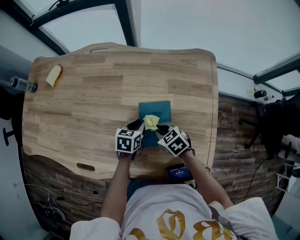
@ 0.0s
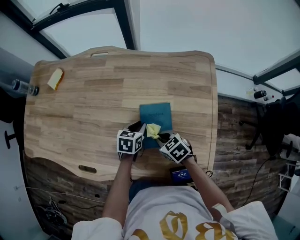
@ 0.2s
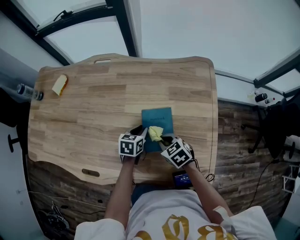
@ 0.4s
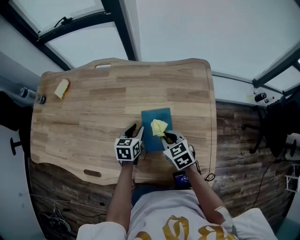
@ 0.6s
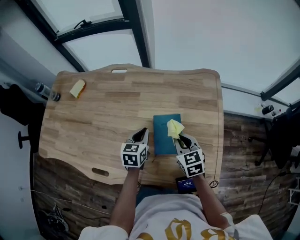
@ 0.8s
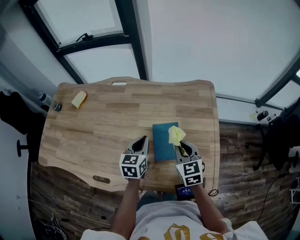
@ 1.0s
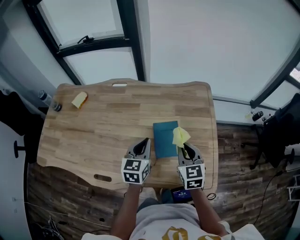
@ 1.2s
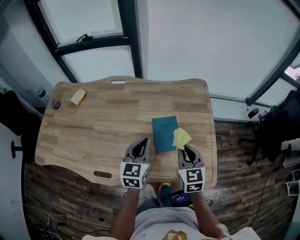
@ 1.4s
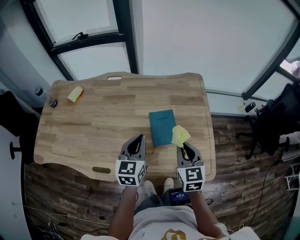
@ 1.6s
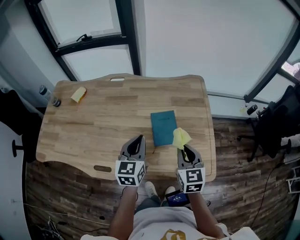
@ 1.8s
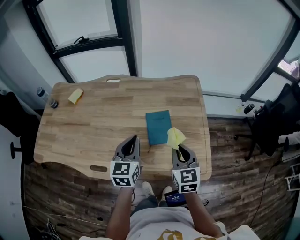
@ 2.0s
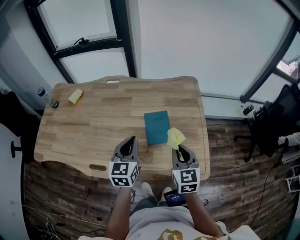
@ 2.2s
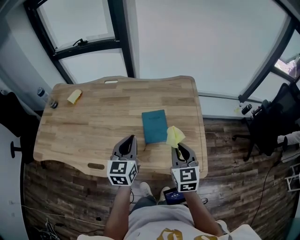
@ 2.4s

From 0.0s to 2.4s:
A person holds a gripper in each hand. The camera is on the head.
From 0.0s to 1.2s: The two grippers go approximately 20 cm upward. The left gripper swivels approximately 30 degrees. The right gripper turns by approximately 50 degrees.
From 1.2s to 2.4s: The right gripper is displaced backward by approximately 10 cm, while the left gripper heads backward and upward, covering roughly 10 cm.

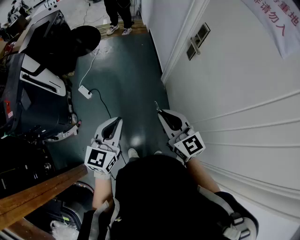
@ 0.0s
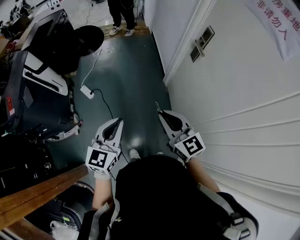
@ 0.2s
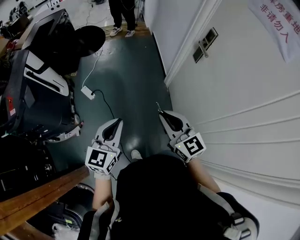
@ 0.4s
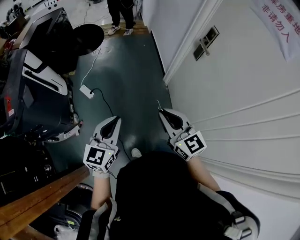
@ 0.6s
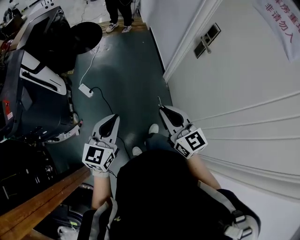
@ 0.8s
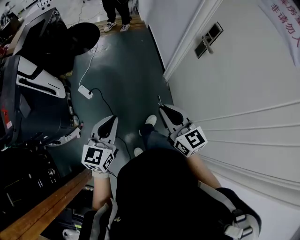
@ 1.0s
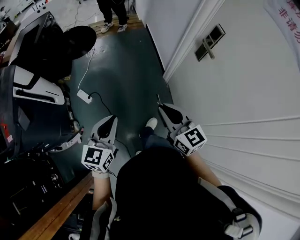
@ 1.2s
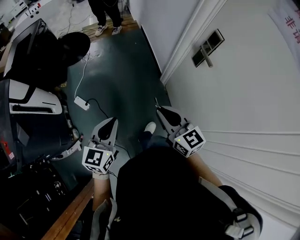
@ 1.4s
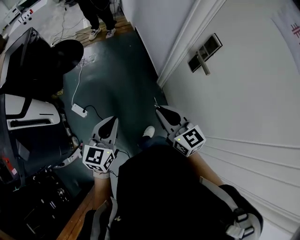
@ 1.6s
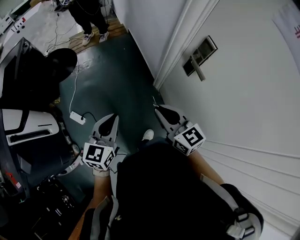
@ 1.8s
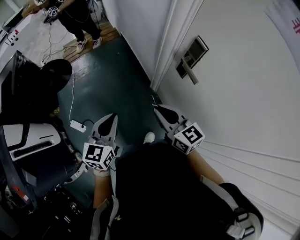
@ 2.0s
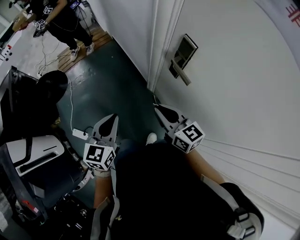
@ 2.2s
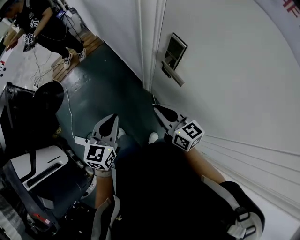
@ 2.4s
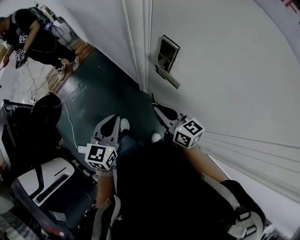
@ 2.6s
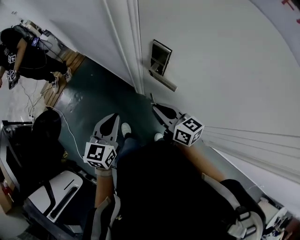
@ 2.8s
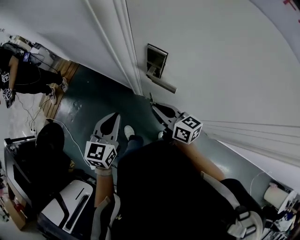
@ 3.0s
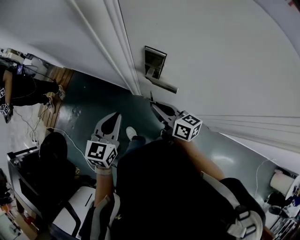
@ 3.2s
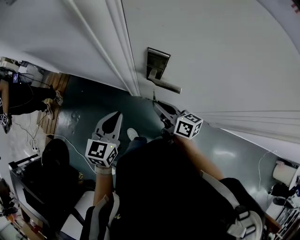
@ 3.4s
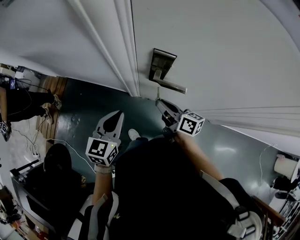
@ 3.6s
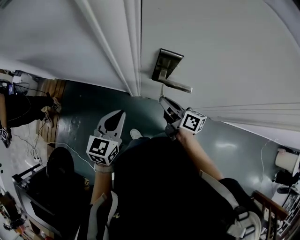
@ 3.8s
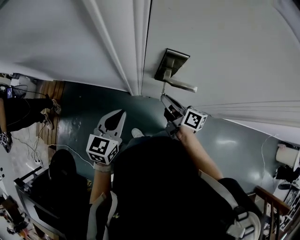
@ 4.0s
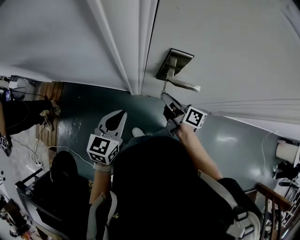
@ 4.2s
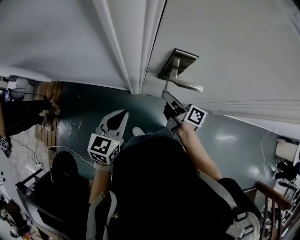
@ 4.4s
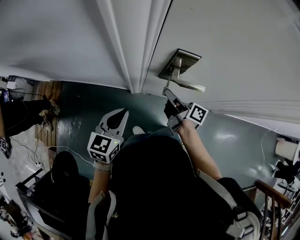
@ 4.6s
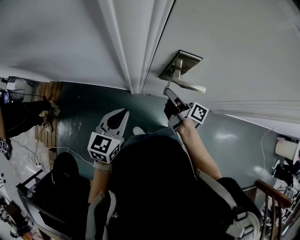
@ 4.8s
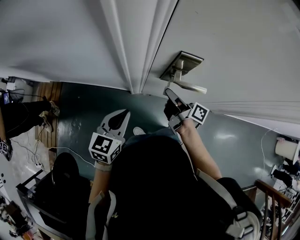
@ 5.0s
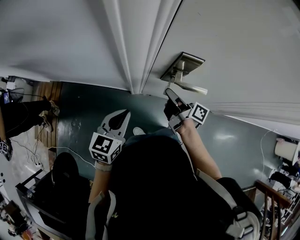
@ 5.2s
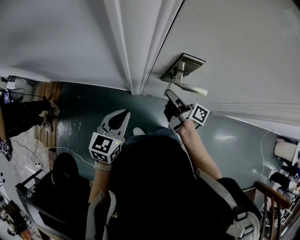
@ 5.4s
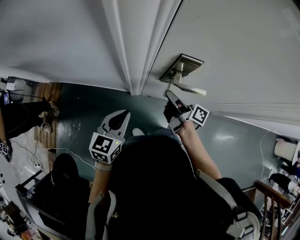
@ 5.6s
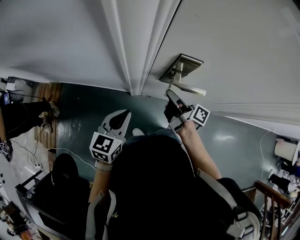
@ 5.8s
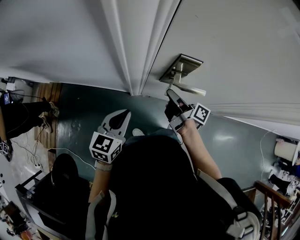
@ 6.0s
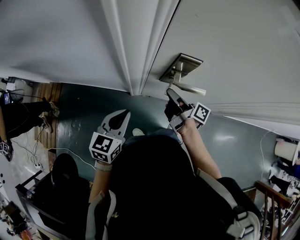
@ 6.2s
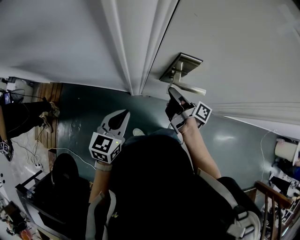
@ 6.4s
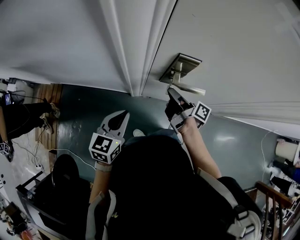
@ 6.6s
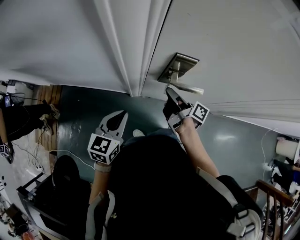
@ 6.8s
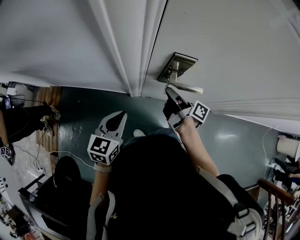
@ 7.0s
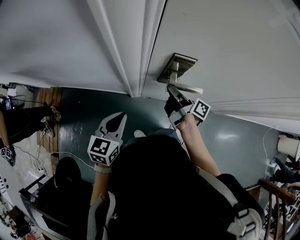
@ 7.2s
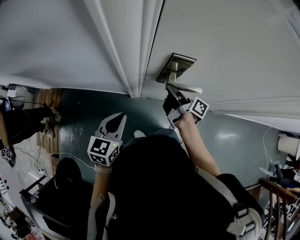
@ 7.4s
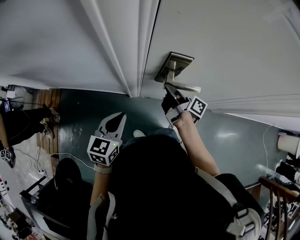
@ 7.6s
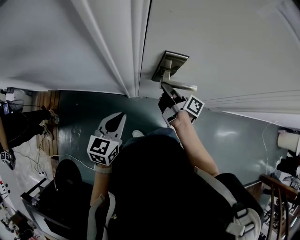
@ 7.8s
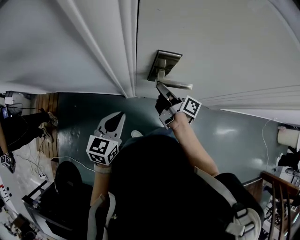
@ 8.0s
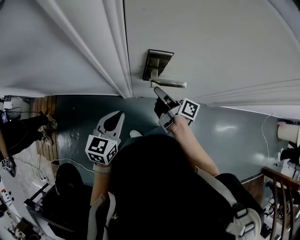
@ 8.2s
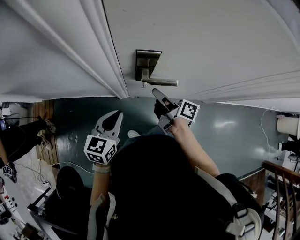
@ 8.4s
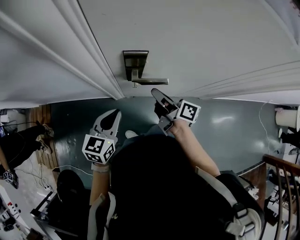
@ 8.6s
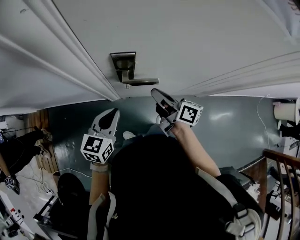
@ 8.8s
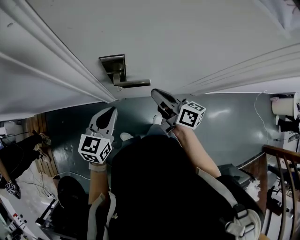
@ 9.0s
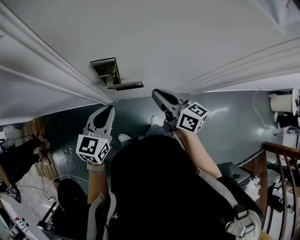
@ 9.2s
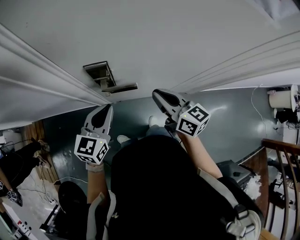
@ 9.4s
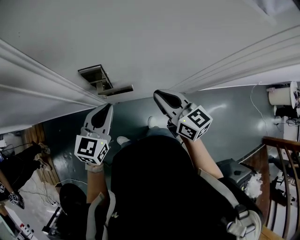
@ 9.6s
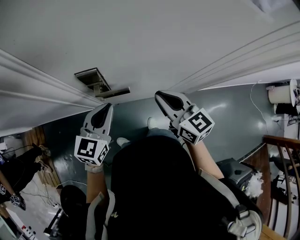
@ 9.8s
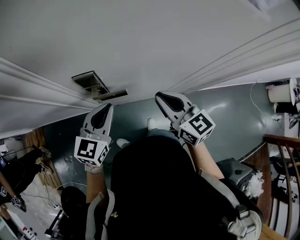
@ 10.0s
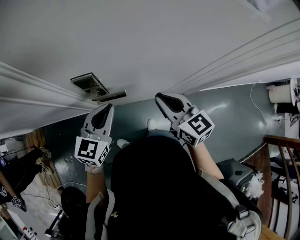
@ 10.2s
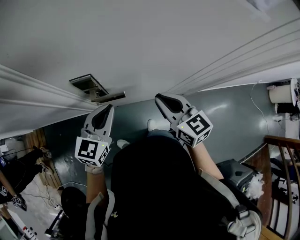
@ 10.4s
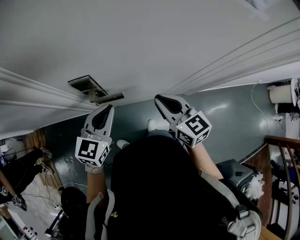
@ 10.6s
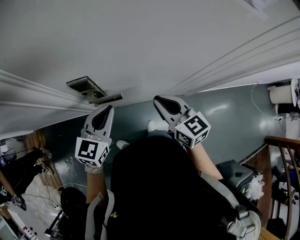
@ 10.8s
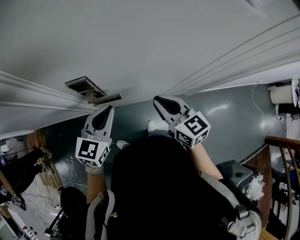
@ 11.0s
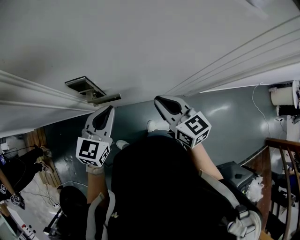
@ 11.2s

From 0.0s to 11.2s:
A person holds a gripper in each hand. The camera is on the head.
From 0.0s to 1.6s: Both grippers move forward, approximately 25 cm.
From 1.6s to 3.2s: The right gripper shifts by roughly 25 cm, and swivels some 60 degrees. The left gripper moves approximately 35 cm, and rotates approximately 50 degrees.
From 3.2s to 4.8s: The right gripper heads forward and downward, covering roughly 10 cm, and rotates approximately 50 degrees. The left gripper moves to the left, forward and downward, roughly 10 cm, and changes its angle by roughly 20 degrees.
From 4.8s to 8.0s: There are only small adjustments of the grippers.
From 8.0s to 9.6s: Both grippers travel together to the right and upward, approximately 20 cm. The right gripper rolls counterclockwise, seen from behind, by roughly 60 degrees.
From 9.6s to 11.2s: The two grippers go some 5 cm to the right.

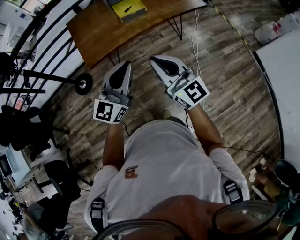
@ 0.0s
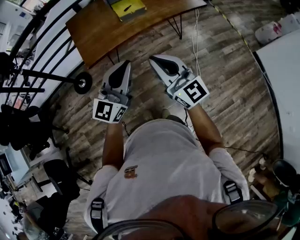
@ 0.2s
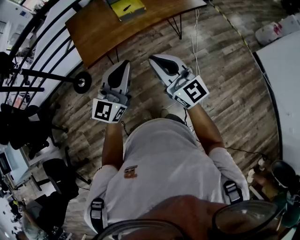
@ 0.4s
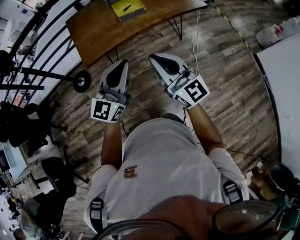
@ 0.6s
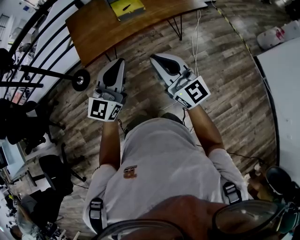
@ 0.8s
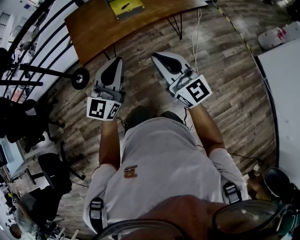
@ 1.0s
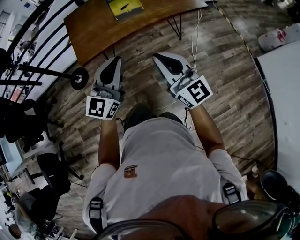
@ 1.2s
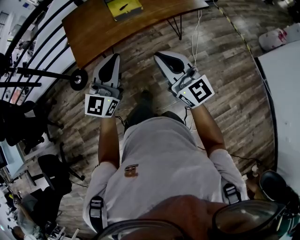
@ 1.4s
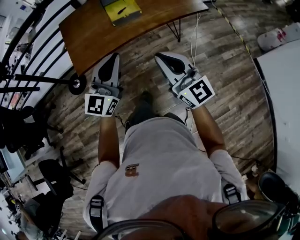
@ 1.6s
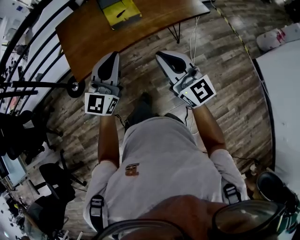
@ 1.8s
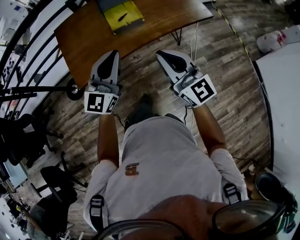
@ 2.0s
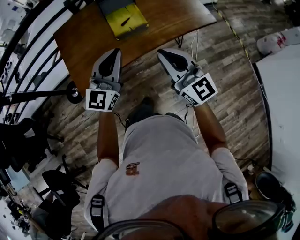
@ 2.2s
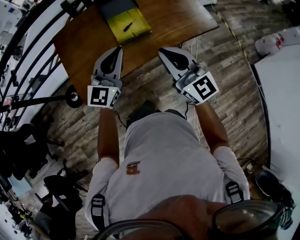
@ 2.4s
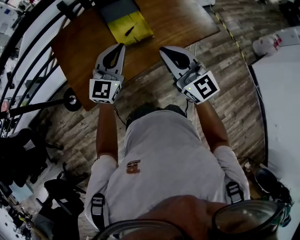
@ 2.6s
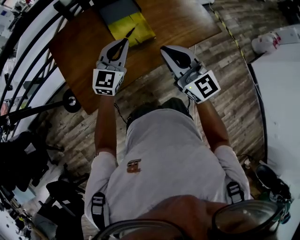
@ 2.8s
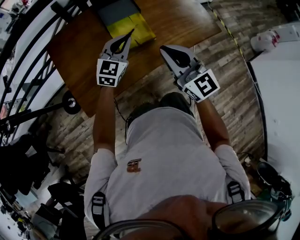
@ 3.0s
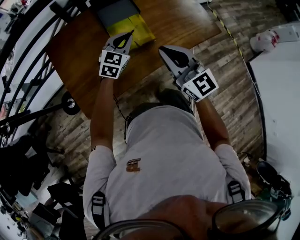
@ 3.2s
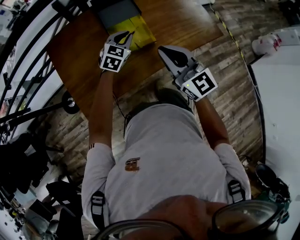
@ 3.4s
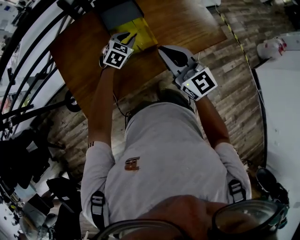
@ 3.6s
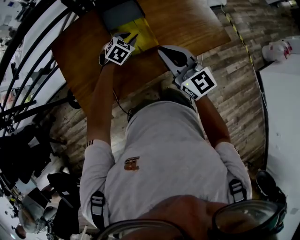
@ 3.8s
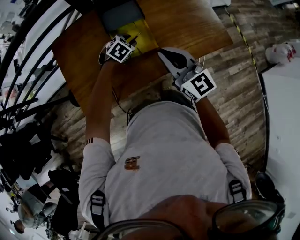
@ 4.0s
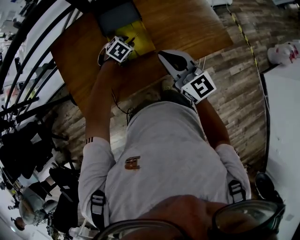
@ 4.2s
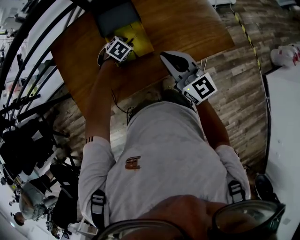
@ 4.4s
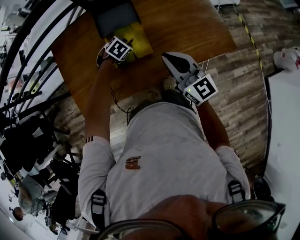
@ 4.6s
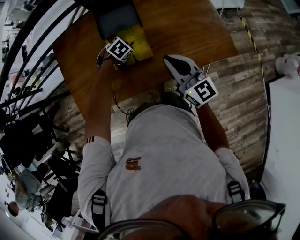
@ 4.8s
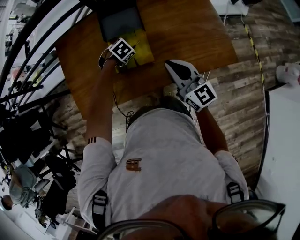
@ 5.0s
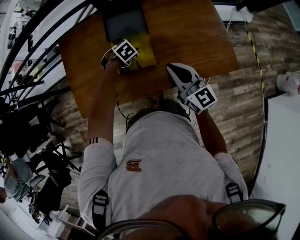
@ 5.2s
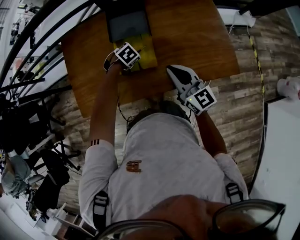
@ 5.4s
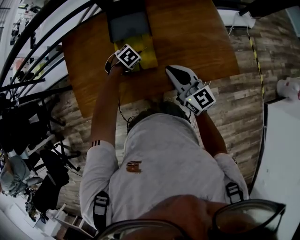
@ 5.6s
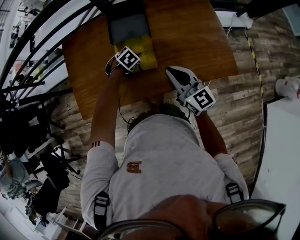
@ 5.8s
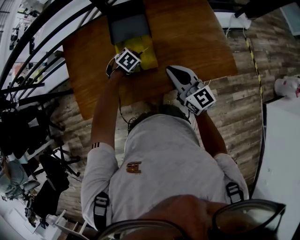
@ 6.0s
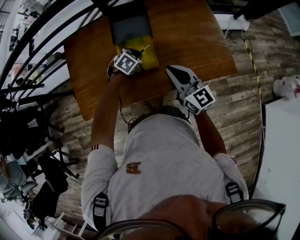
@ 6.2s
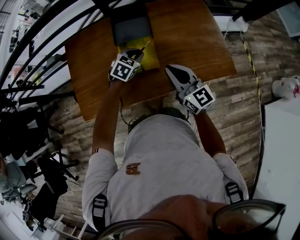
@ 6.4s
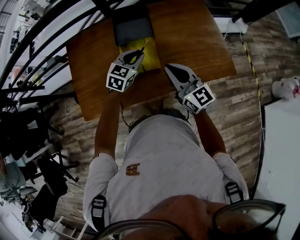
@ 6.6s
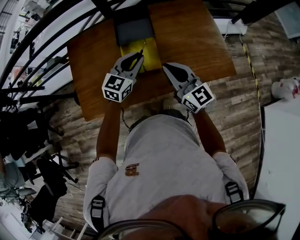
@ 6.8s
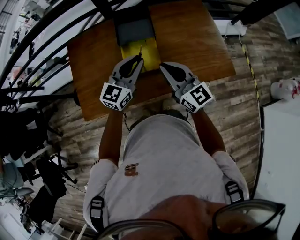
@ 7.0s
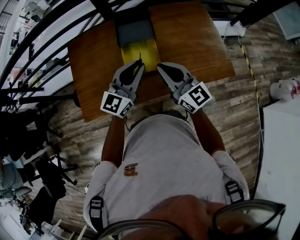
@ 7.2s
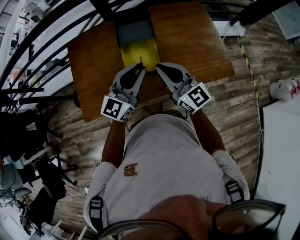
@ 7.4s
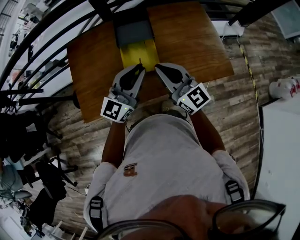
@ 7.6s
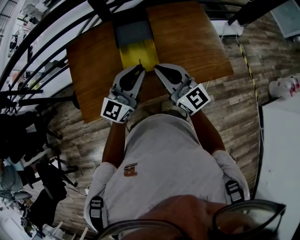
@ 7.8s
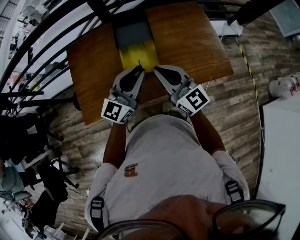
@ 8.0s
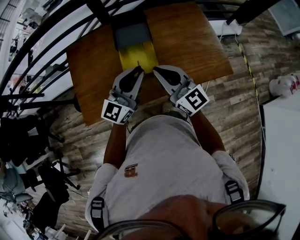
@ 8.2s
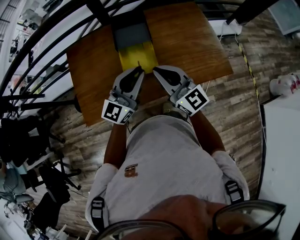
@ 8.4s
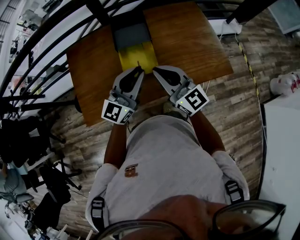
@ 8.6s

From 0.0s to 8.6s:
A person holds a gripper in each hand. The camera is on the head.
From 0.0s to 1.4s: The left gripper travels forward and to the right by roughly 10 cm. Meanwhile the right gripper shifts some 10 cm to the right and forward.
From 1.4s to 2.8s: Both grippers are carried forward, roughly 40 cm.
From 2.8s to 4.4s: The right gripper moves forward, to the right and downward, some 20 cm; the left gripper heads downward and forward, covering roughly 30 cm, points its fingers roughly 60 degrees further downward, and opens its fingers.
From 4.4s to 5.8s: The right gripper changes place by roughly 5 cm.
From 5.8s to 7.2s: The right gripper changes place by about 10 cm, while the left gripper heads upward, covering about 30 cm, and angles its fingers upward, by about 80 degrees.
From 7.2s to 8.6s: There are only small adjustments of the grippers.

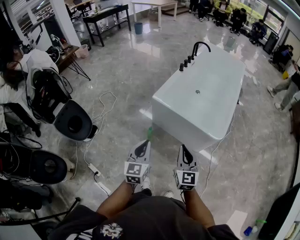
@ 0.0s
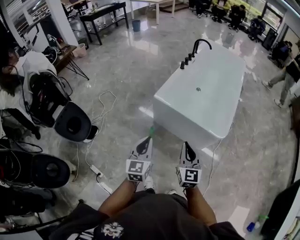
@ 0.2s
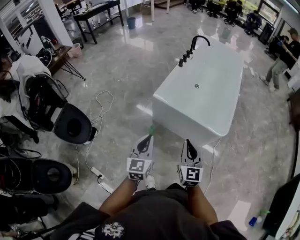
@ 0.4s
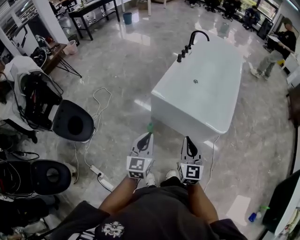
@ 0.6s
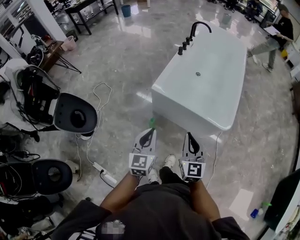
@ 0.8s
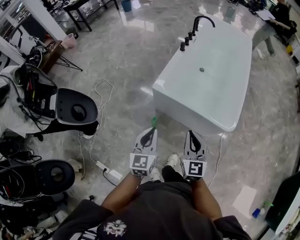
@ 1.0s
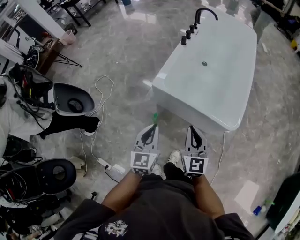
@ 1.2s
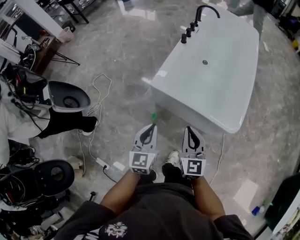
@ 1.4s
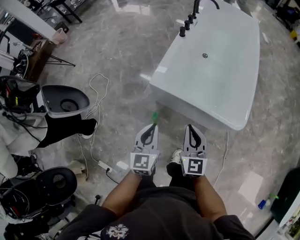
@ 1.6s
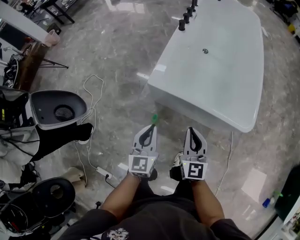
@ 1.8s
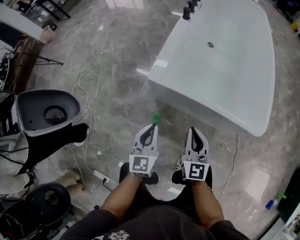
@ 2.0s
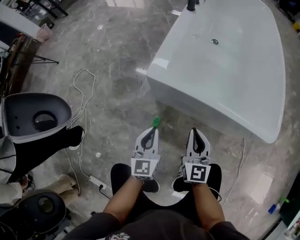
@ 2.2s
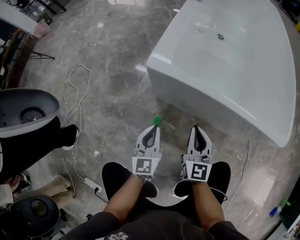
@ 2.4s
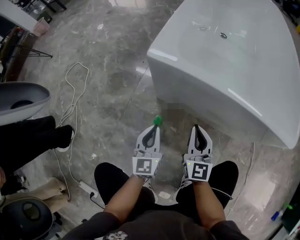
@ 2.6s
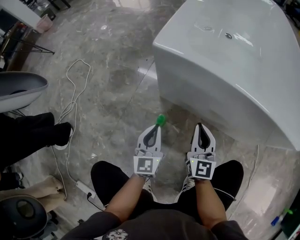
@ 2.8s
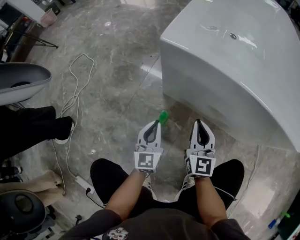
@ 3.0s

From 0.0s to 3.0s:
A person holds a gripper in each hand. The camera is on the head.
From 0.0s to 1.6s: The two grippers go approximately 25 cm forward and downward.
From 1.6s to 3.0s: Both grippers move downward, about 50 cm.
